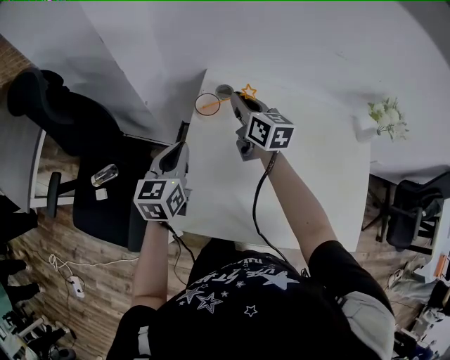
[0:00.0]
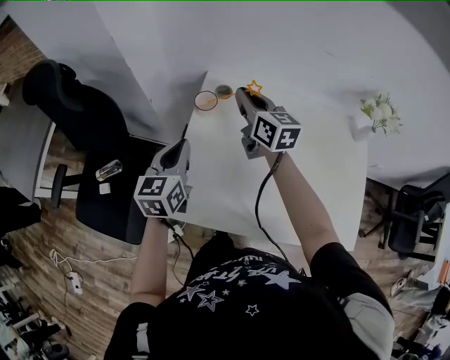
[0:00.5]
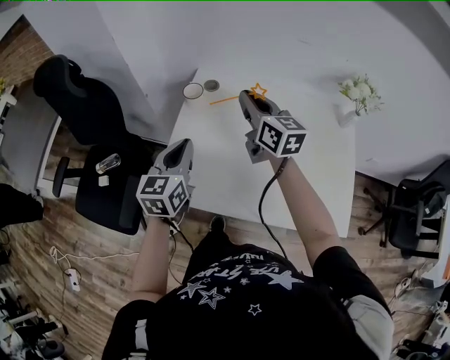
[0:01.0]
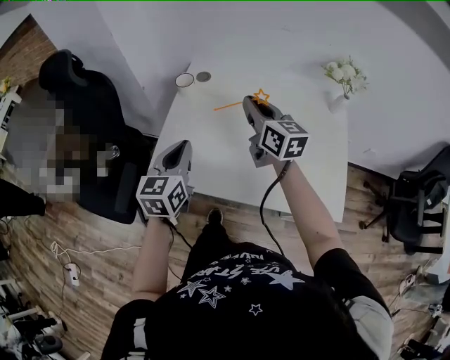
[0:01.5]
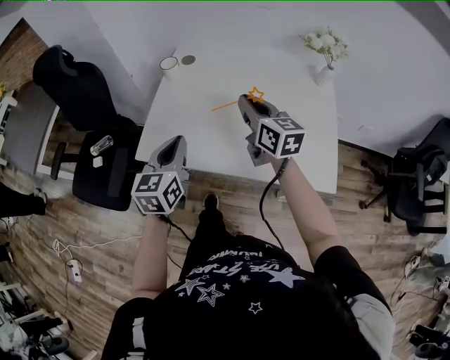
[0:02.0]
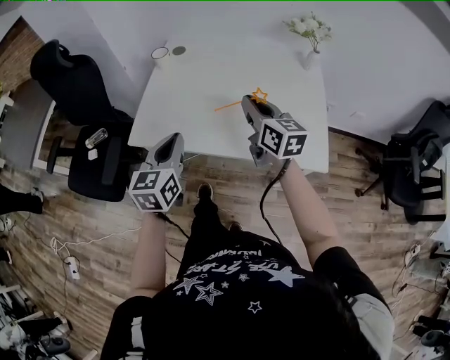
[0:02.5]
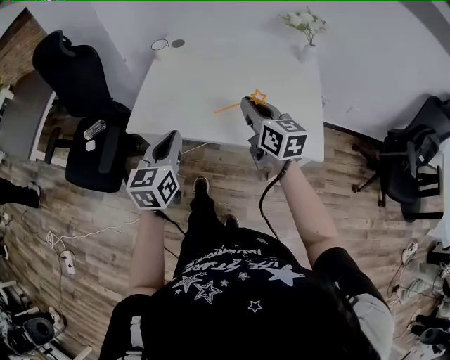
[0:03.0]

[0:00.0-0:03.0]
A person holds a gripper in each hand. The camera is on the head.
0:00.0 to 0:01.5: The right gripper goes some 25 cm backward, to the right and upward. Meanwhile the left gripper moves backward and to the right, about 20 cm.
0:01.5 to 0:03.0: Both grippers move backward, some 20 cm.

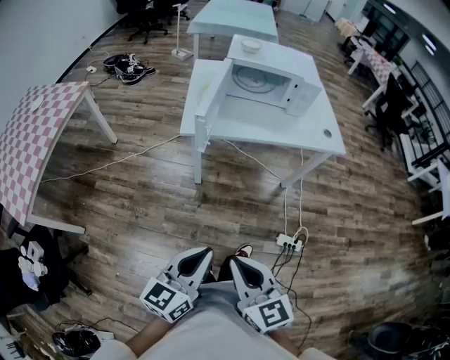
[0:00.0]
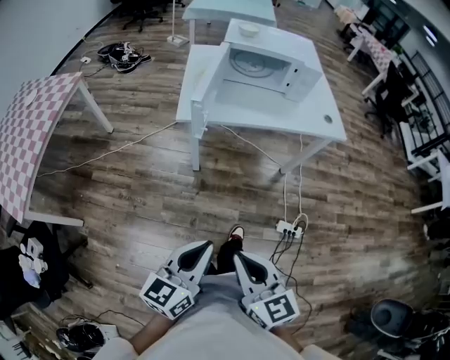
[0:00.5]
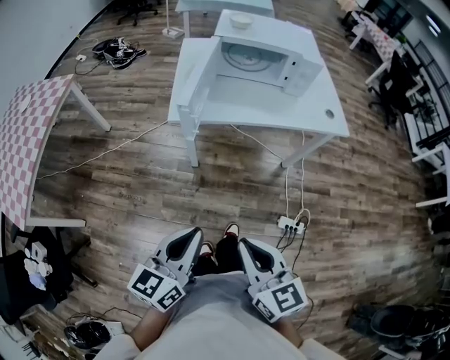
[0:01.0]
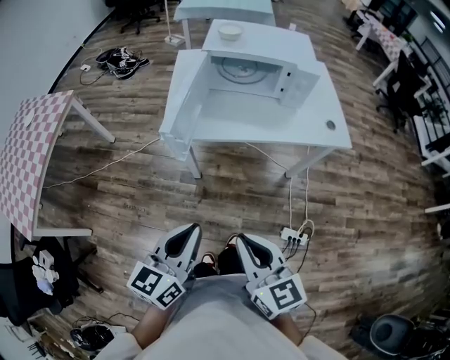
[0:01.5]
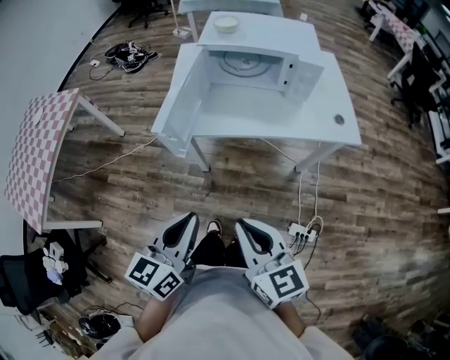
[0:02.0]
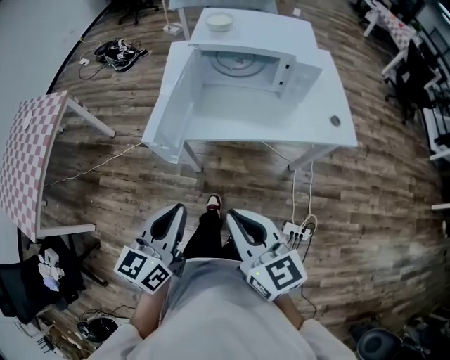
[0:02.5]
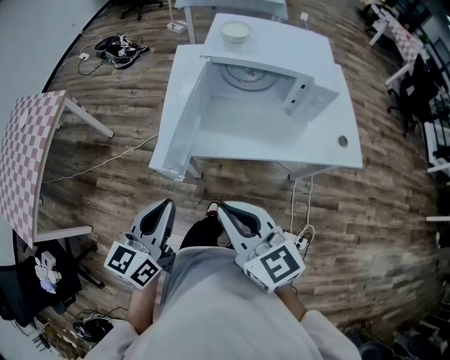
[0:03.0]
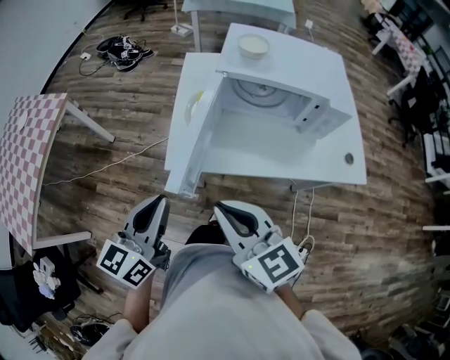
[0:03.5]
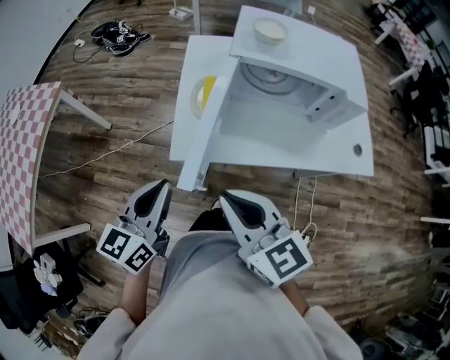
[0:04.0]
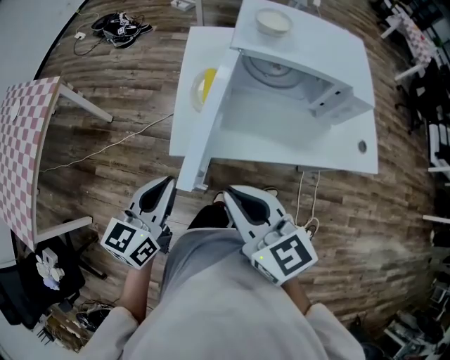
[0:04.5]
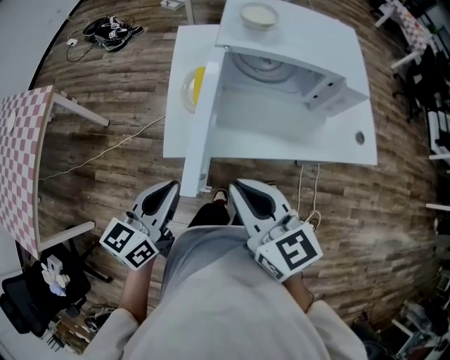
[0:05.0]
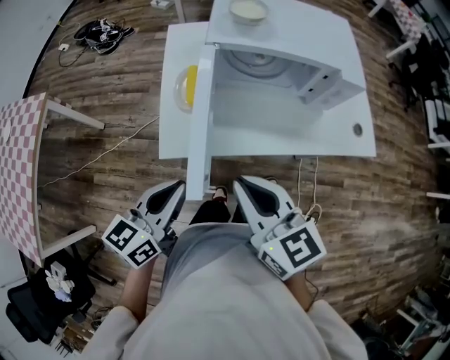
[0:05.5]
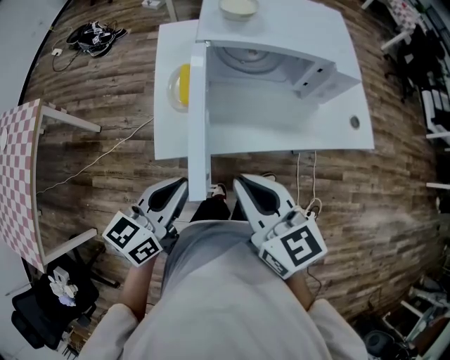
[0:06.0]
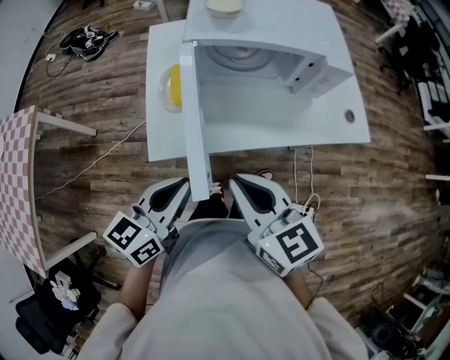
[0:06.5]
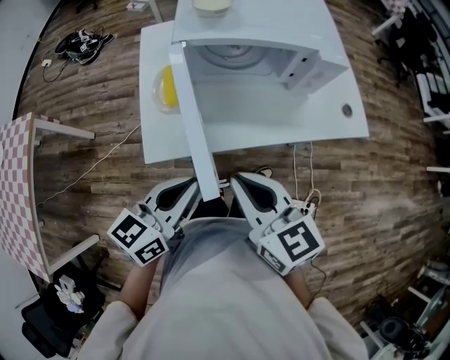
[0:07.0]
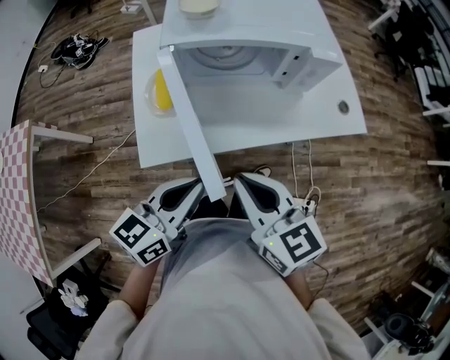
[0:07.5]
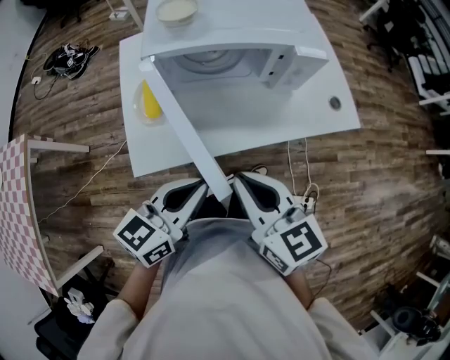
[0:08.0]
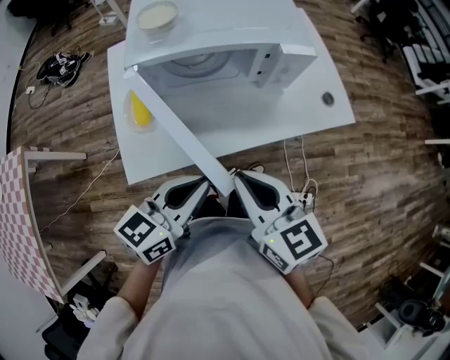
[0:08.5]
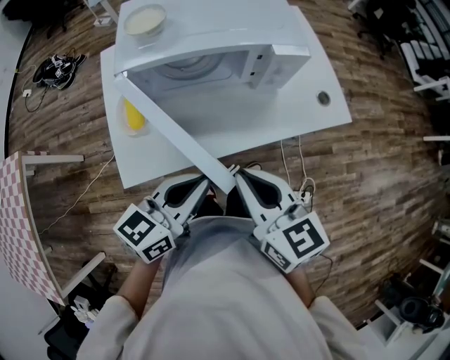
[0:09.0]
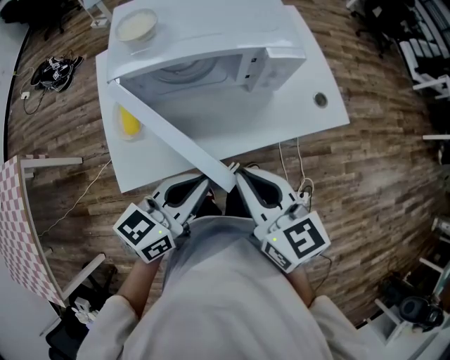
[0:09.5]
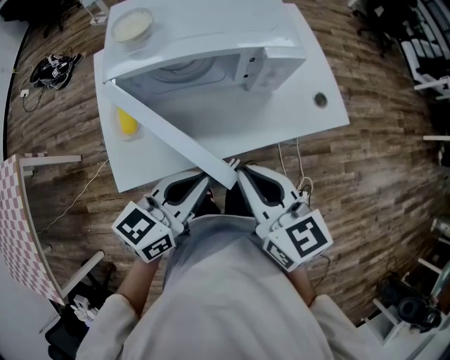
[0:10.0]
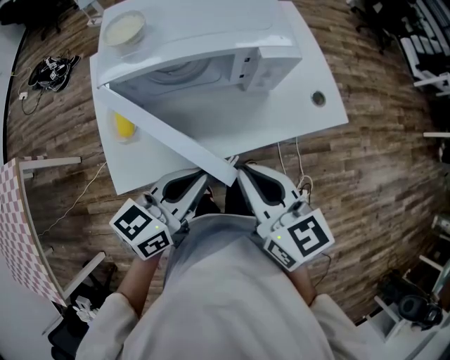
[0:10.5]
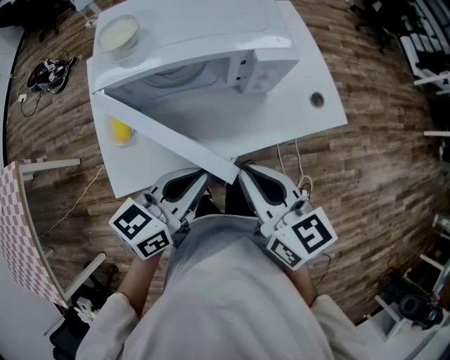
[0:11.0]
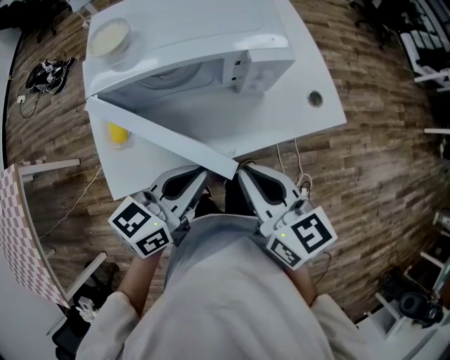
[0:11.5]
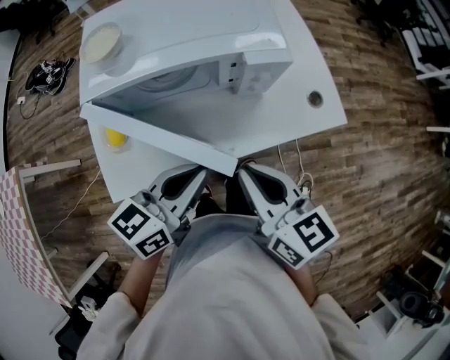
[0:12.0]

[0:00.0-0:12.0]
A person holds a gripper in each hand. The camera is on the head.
0:00.0 to 0:02.0: The left gripper heads forward, covering about 20 cm, while the right gripper shifts approximately 20 cm forward and to the right.
0:02.0 to 0:04.0: Both grippers travel together forward and to the left, approximately 25 cm.
0:04.0 to 0:06.0: The grippers both shift to the right by about 5 cm.
0:06.0 to 0:08.0: The left gripper shifts some 10 cm to the right, while the right gripper moves to the right, approximately 10 cm.
0:08.0 to 0:10.0: Both grippers travel together to the right and forward, about 10 cm.
0:10.0 to 0:12.0: The right gripper ends up some 5 cm from where it was; the left gripper moves forward, approximately 5 cm.

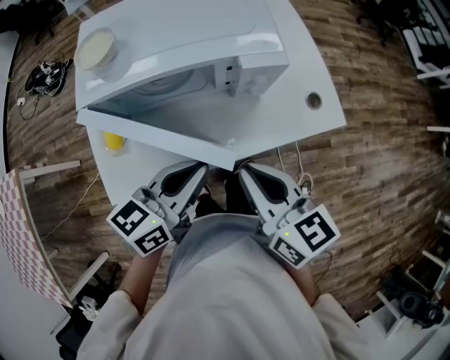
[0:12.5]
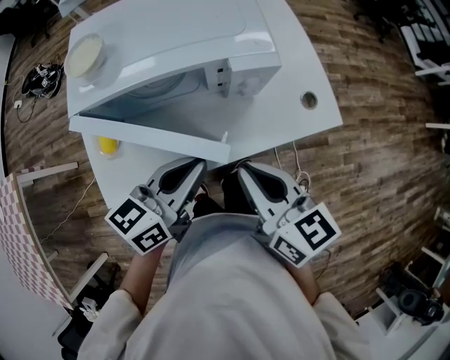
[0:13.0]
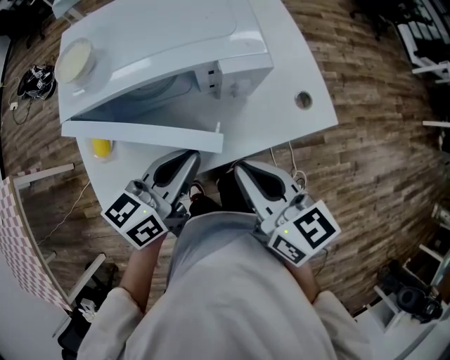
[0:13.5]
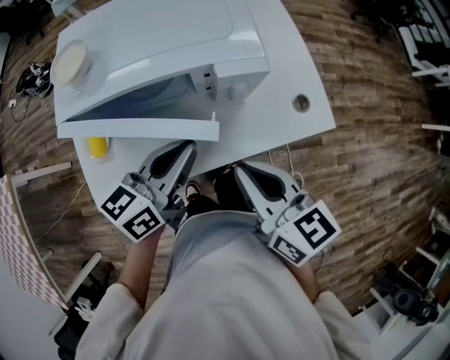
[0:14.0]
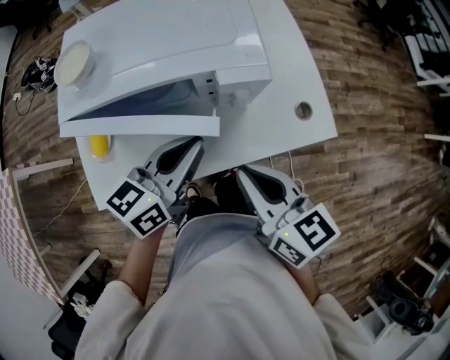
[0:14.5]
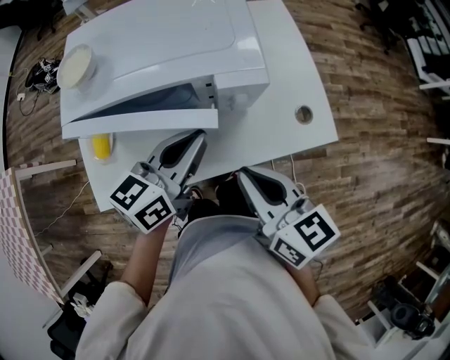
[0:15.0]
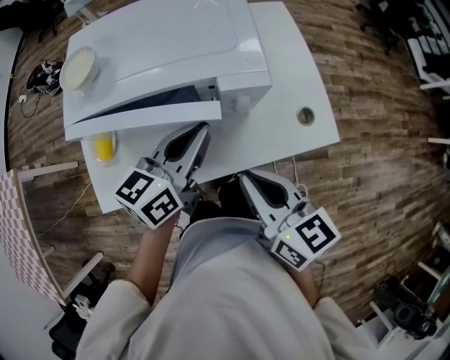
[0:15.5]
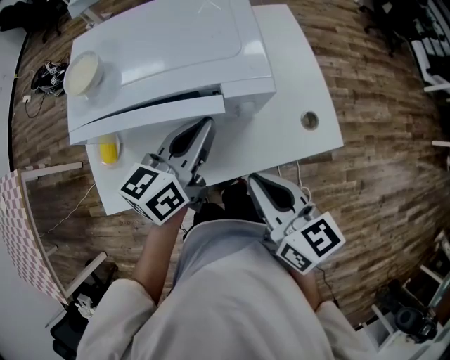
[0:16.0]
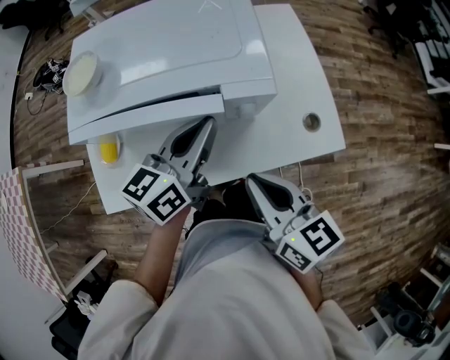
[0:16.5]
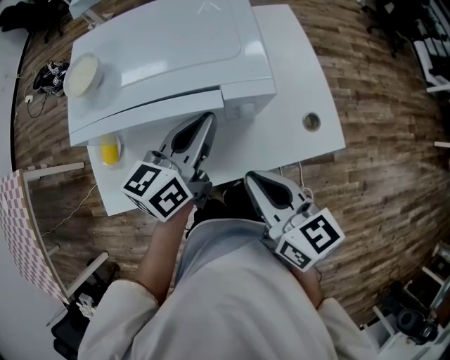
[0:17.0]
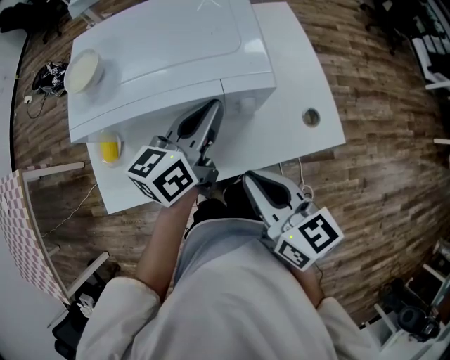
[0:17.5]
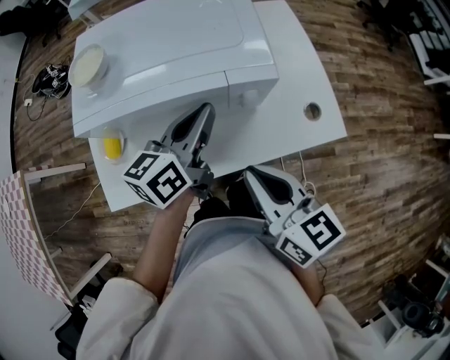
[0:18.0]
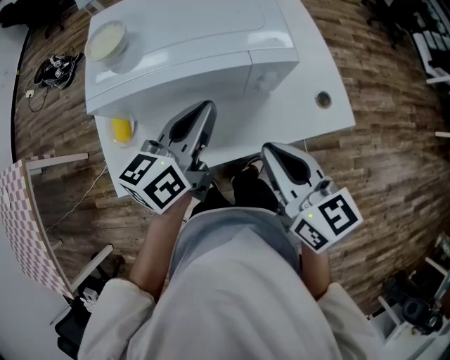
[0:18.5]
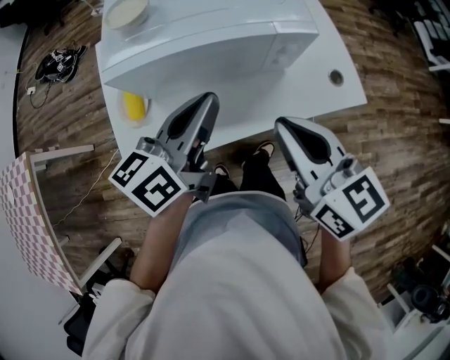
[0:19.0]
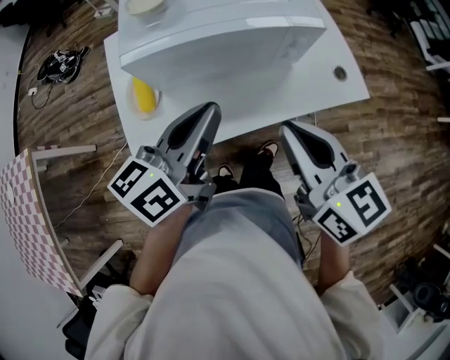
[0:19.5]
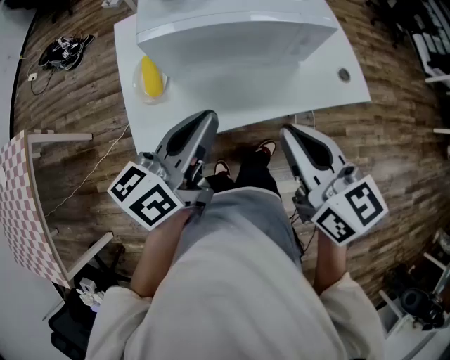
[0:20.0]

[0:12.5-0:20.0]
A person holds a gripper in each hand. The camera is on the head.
0:12.5 to 0:14.5: The right gripper shifts by some 5 cm; the left gripper is displaced forward by some 10 cm.
0:14.5 to 0:16.5: The left gripper travels forward by about 5 cm.
0:16.5 to 0:18.0: There are only small adjustments of the grippers.
0:18.0 to 0:20.0: The right gripper is displaced to the left, backward and upward by roughly 15 cm, while the left gripper moves backward and to the left, roughly 25 cm.

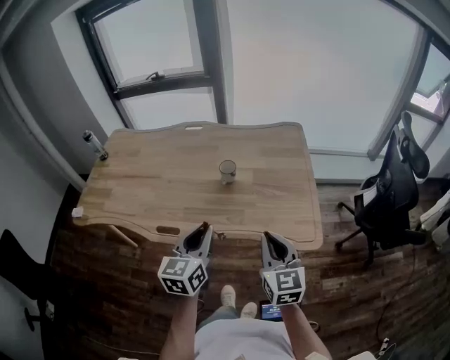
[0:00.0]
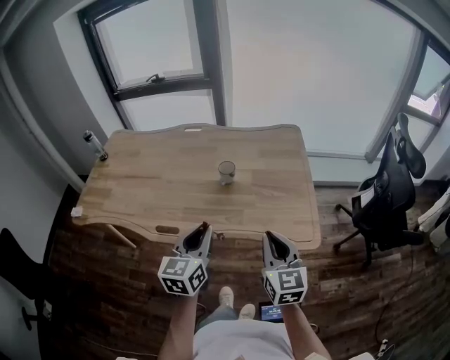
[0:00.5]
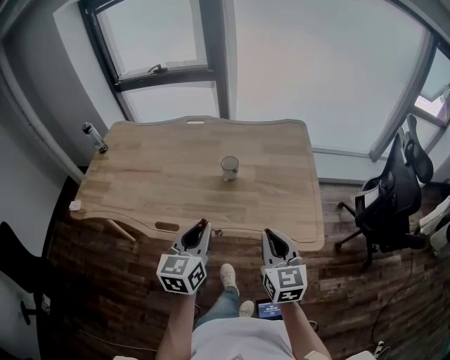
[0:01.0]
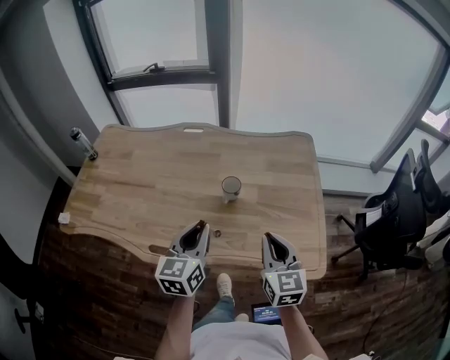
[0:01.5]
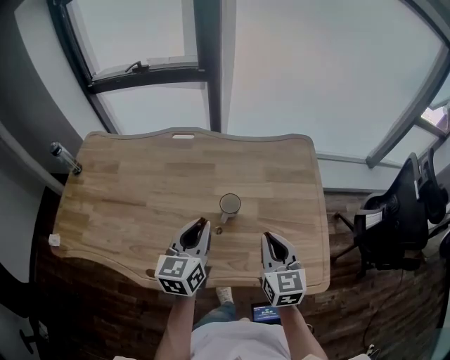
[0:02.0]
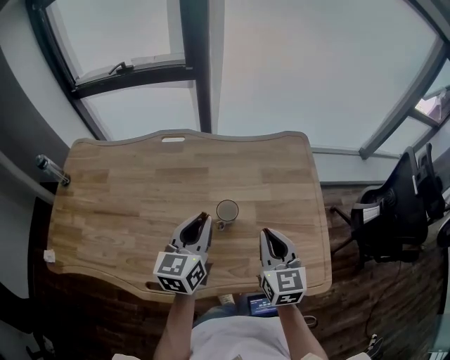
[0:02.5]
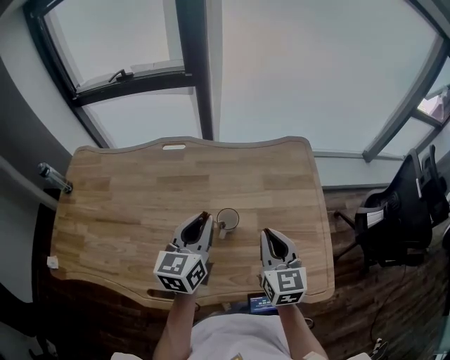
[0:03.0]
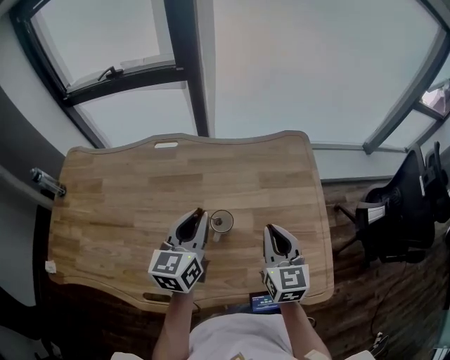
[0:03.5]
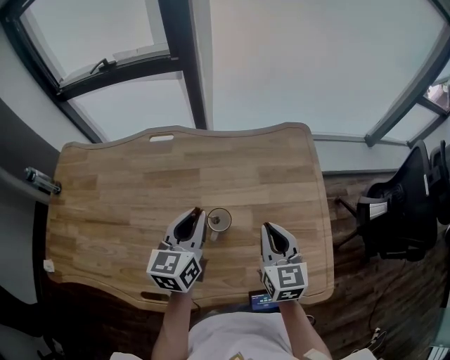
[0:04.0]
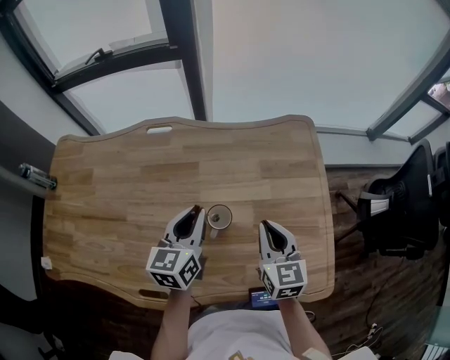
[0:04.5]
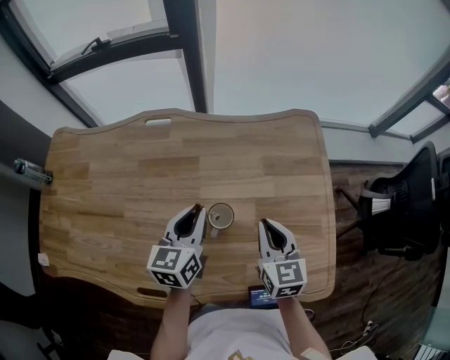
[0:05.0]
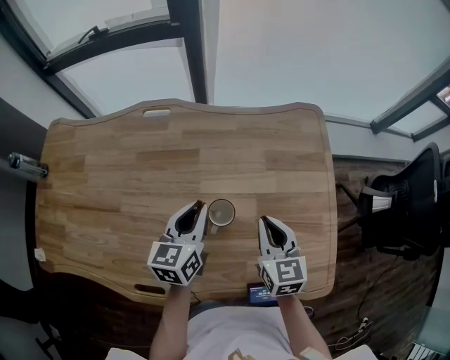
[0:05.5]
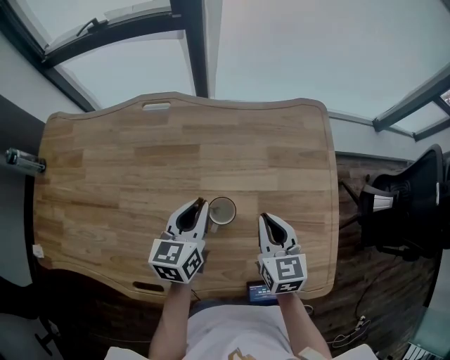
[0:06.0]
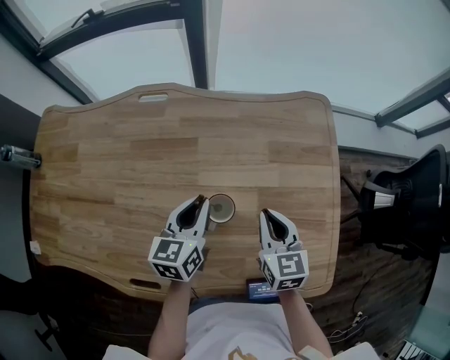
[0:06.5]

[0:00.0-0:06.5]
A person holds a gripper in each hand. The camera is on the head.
0:00.0 to 0:02.0: Both grippers move forward, approximately 25 cm.
0:02.0 to 0:04.5: The two grippers go some 15 cm forward and downward.
0:04.5 to 0:06.5: The grippers both shift downward by approximately 5 cm.
